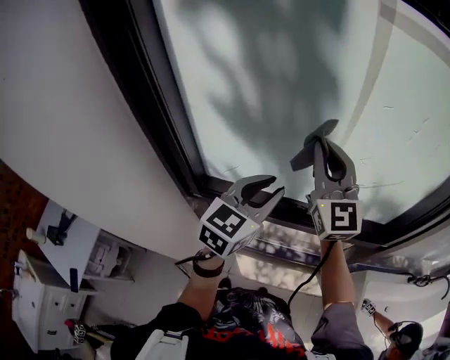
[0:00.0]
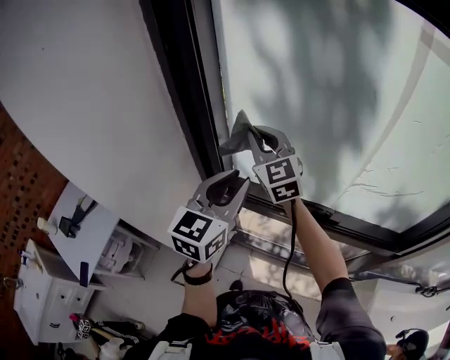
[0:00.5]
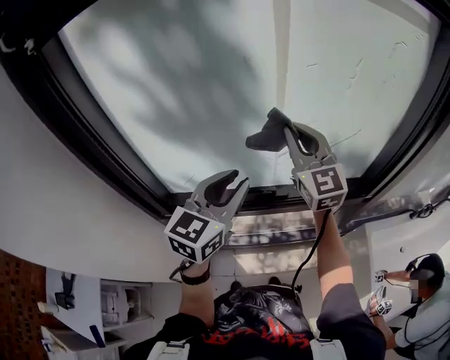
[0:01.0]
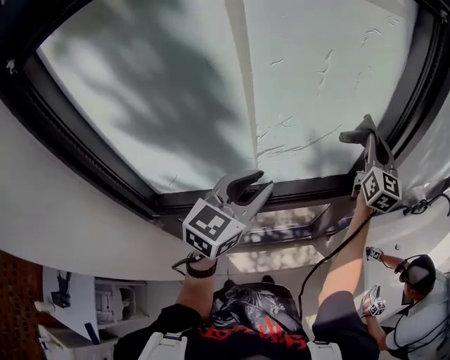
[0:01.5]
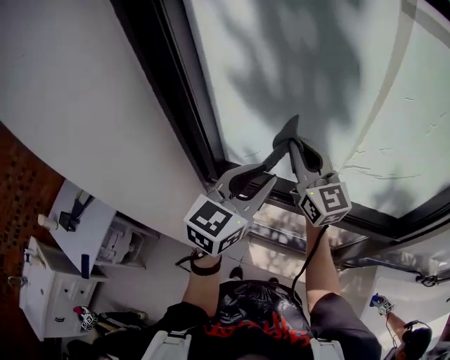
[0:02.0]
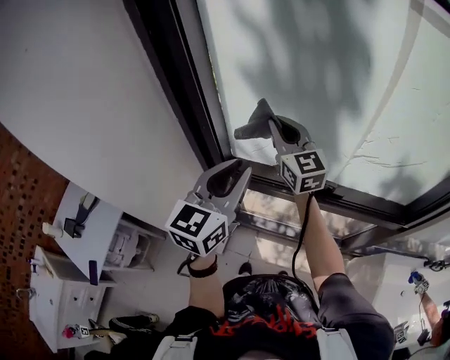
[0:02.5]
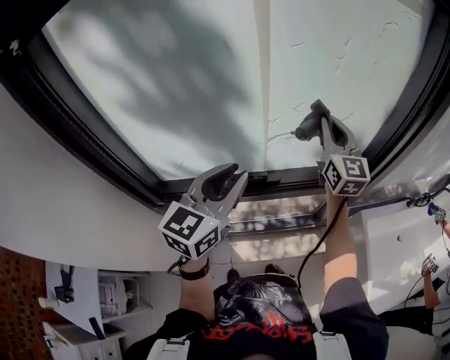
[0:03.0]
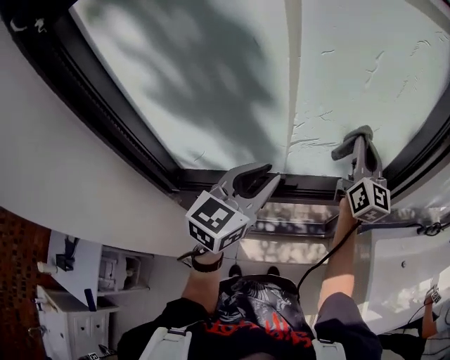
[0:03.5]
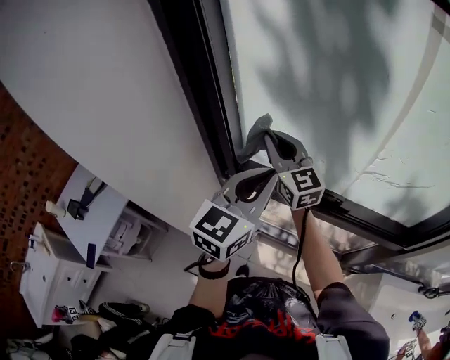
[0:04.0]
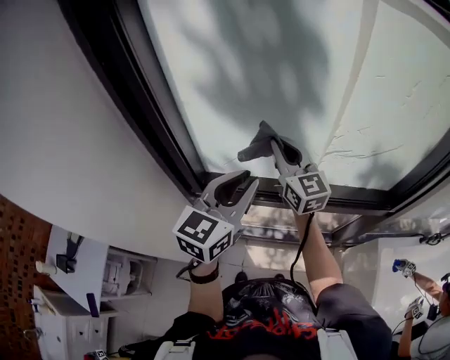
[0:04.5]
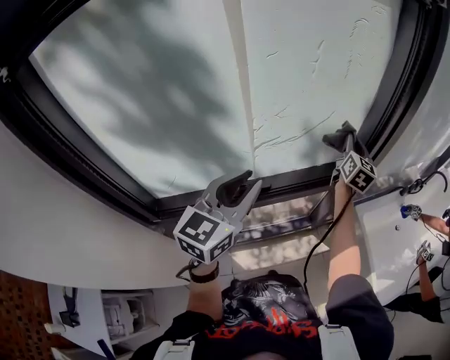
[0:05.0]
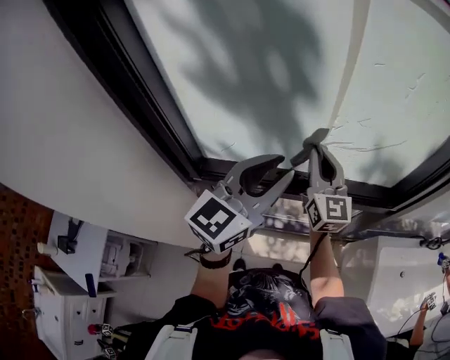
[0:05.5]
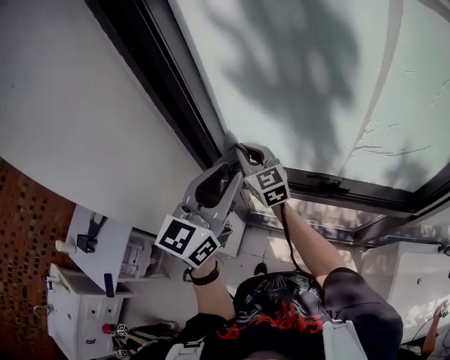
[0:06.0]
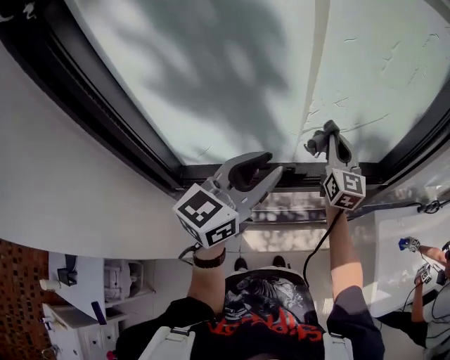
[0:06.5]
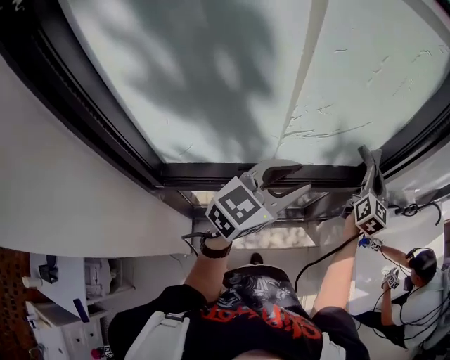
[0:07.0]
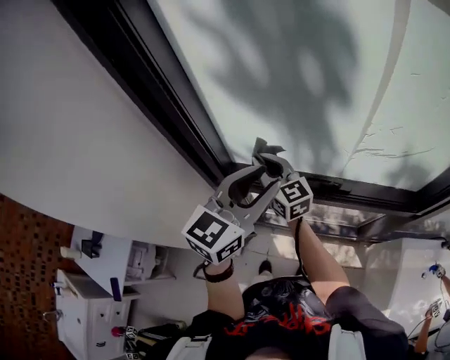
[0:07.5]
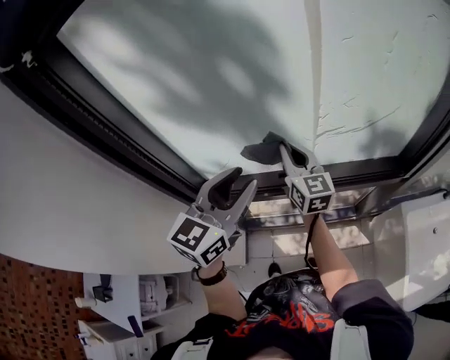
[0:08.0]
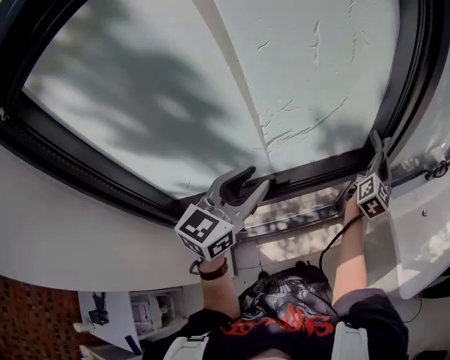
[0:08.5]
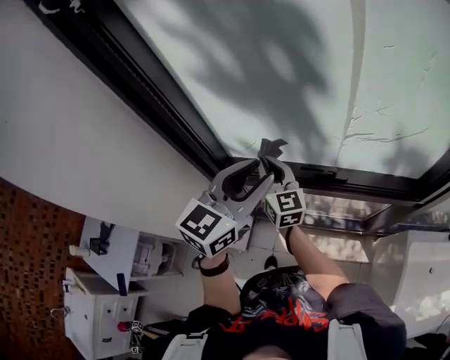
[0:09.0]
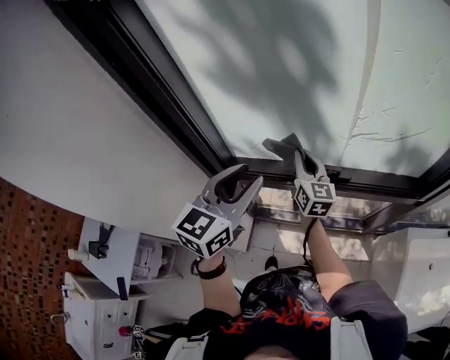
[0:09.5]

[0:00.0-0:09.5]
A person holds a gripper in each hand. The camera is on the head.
0:00.0 to 0:02.0: The right gripper rotates approximately 20 degrees.
0:02.0 to 0:04.0: The left gripper closes.
0:04.0 to 0:05.5: The right gripper turns by approximately 30 degrees, while the left gripper turns by roughly 20 degrees, and opens its fingers.
0:05.5 to 0:07.5: The right gripper changes place by approximately 25 cm, and turns by approximately 30 degrees.
0:07.5 to 0:09.5: The right gripper changes its angle by some 30 degrees.

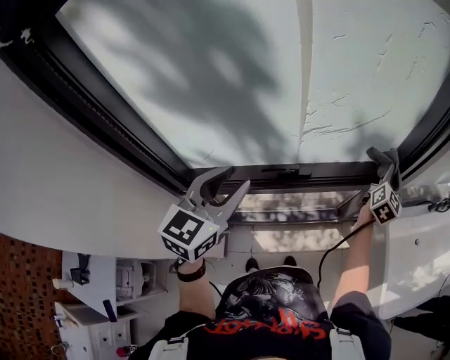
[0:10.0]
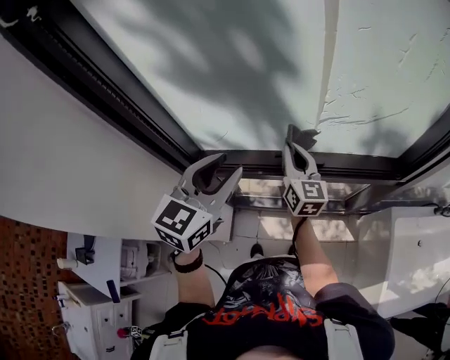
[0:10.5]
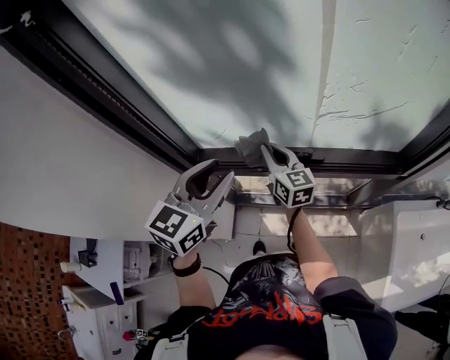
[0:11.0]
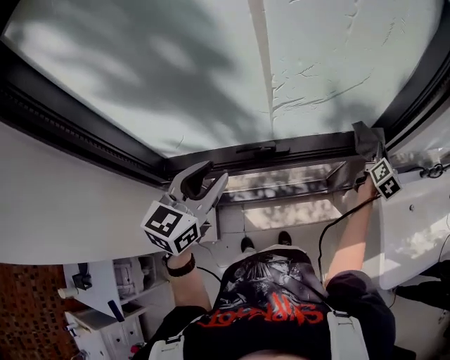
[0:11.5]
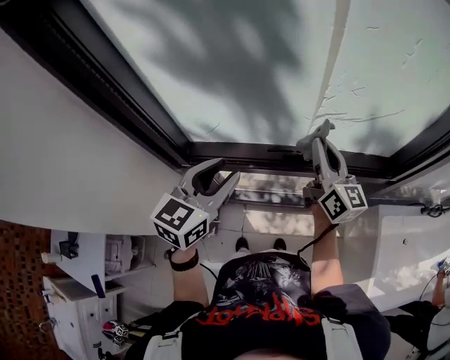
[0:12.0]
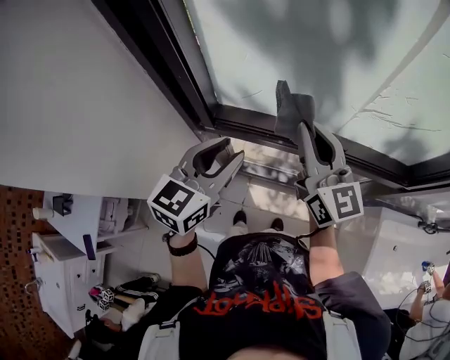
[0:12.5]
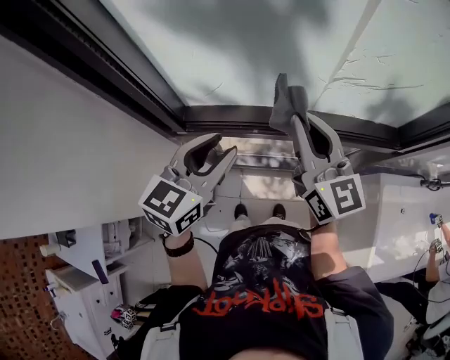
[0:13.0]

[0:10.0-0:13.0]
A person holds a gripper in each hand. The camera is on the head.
0:10.0 to 0:11.5: The right gripper travels downward by about 5 cm.
0:11.5 to 0:13.0: The left gripper moves roughly 10 cm. Meanwhile the right gripper moves approximately 50 cm, and swivels some 60 degrees.

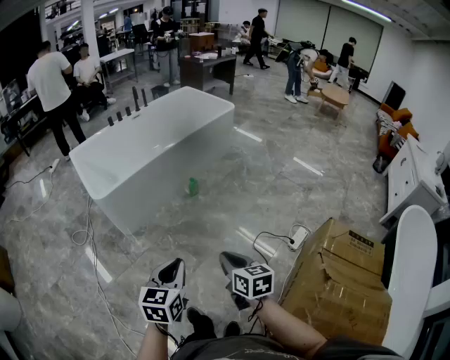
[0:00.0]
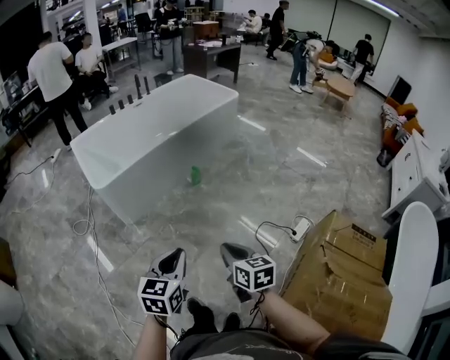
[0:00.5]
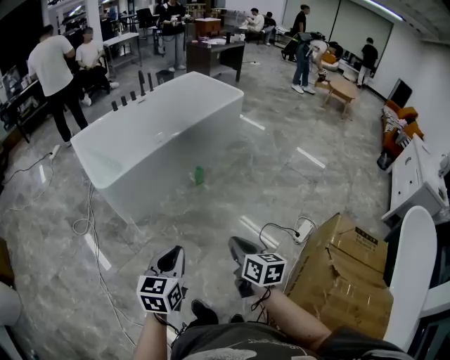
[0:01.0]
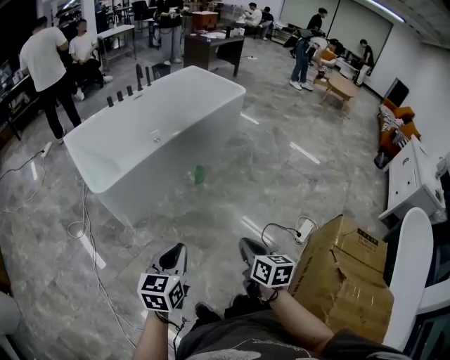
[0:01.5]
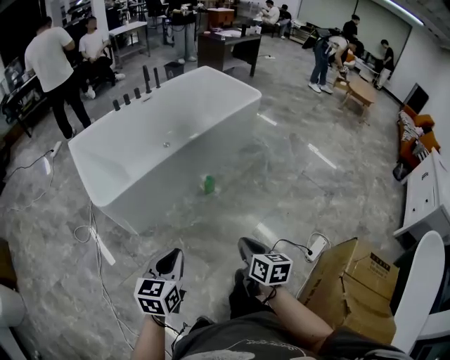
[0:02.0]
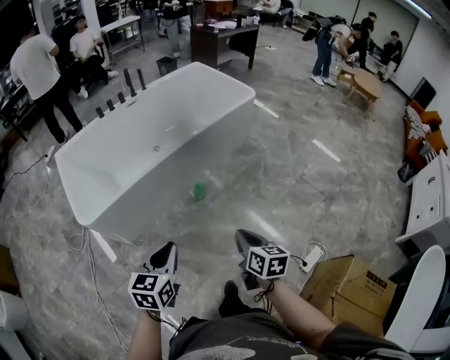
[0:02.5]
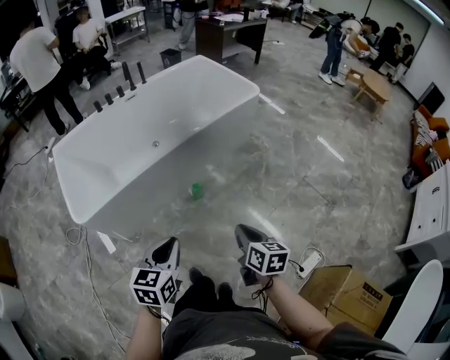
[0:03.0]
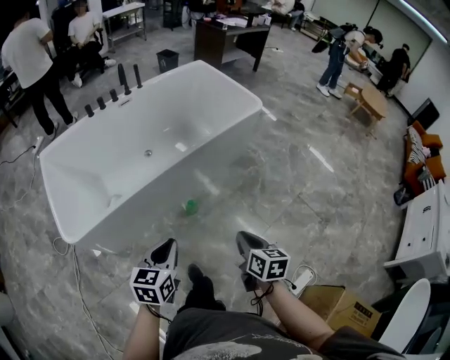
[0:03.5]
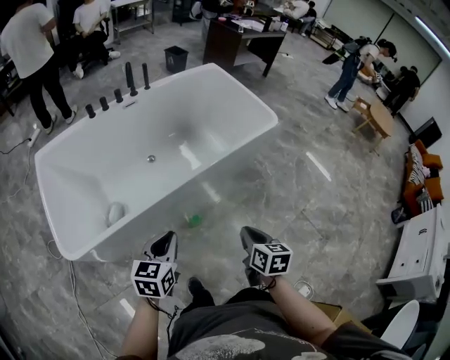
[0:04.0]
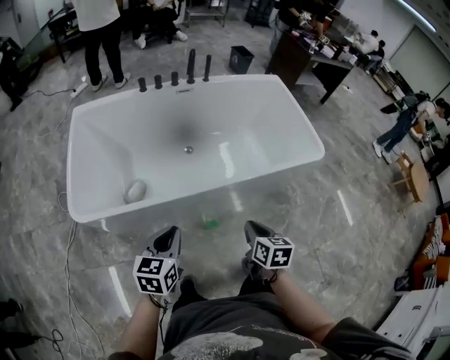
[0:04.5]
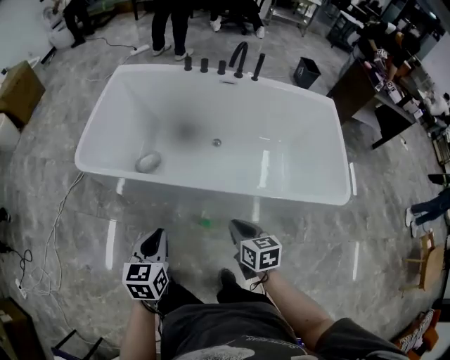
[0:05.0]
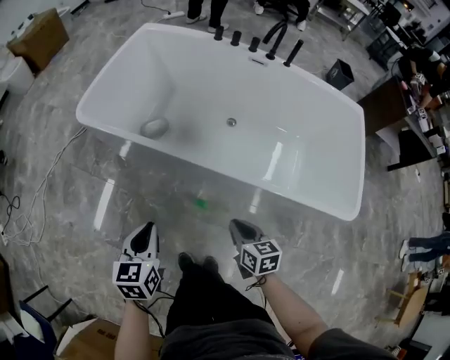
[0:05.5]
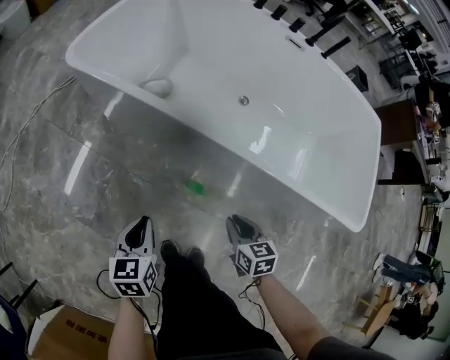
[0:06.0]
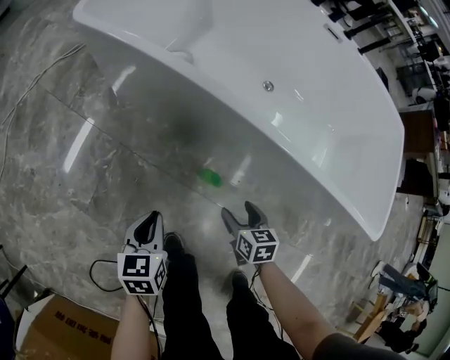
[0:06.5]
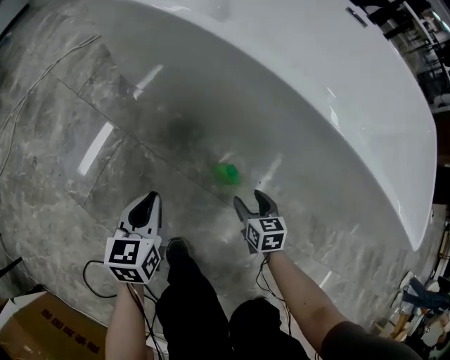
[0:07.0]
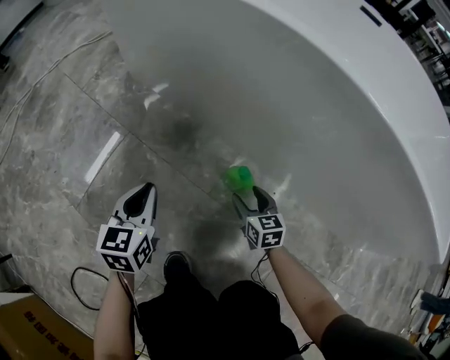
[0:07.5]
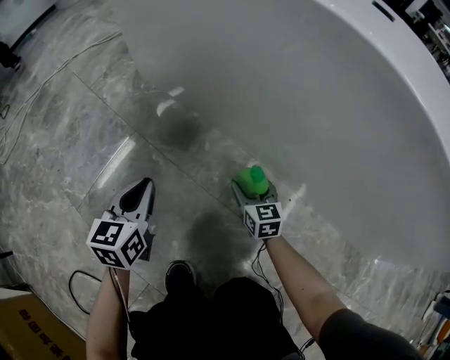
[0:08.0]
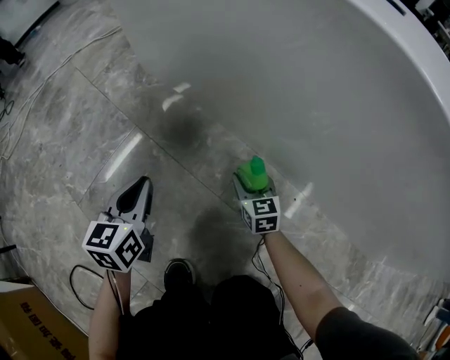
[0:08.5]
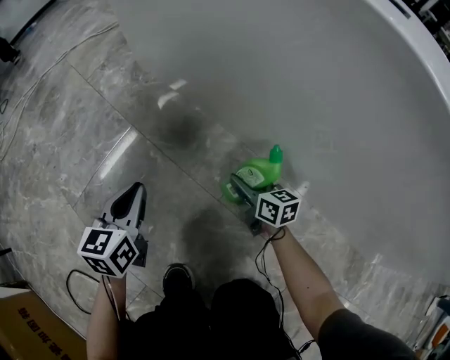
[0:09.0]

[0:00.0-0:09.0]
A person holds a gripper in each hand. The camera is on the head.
0:00.0 to 0:02.0: The two grippers go roughly 25 cm forward.
0:02.0 to 0:04.5: Both grippers are carried forward, approximately 50 cm. The left gripper changes its angle by some 30 degrees, while the right gripper swivels approximately 30 degrees.
0:04.5 to 0:07.0: Both grippers travel together downward, about 50 cm. The right gripper rotates some 60 degrees, and opens its fingers; the left gripper swivels some 60 degrees.
0:07.0 to 0:09.0: The right gripper shifts about 20 cm downward, forward and to the left, rotates roughly 30 degrees, and closes its fingers. Meanwhile the left gripper is displaced downward by approximately 15 cm.

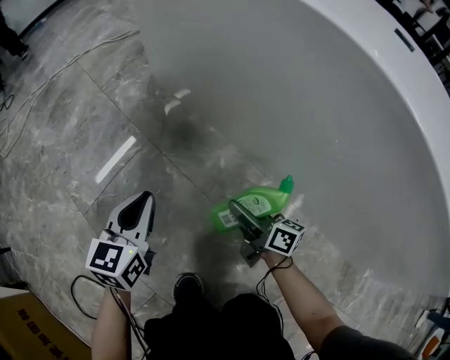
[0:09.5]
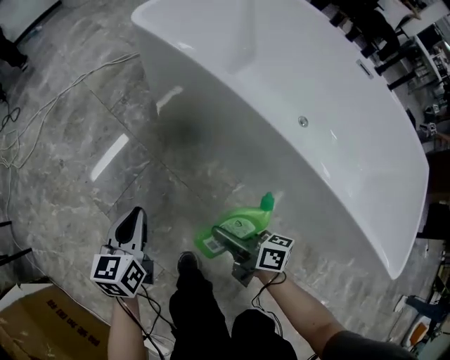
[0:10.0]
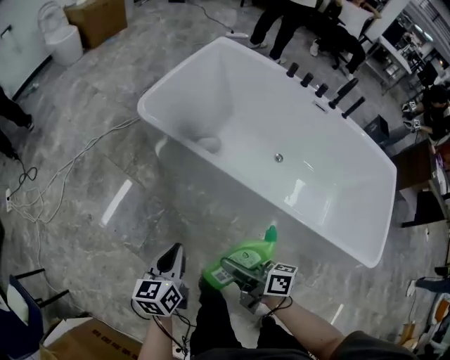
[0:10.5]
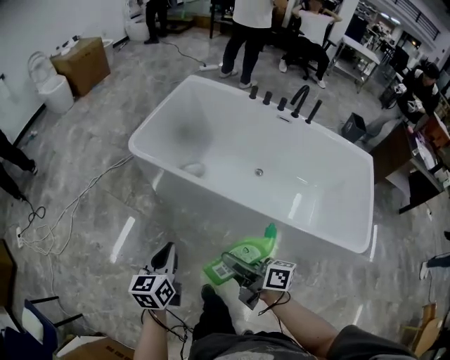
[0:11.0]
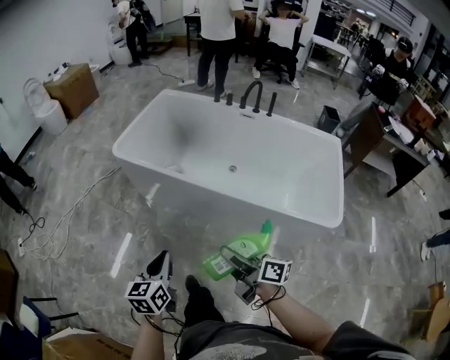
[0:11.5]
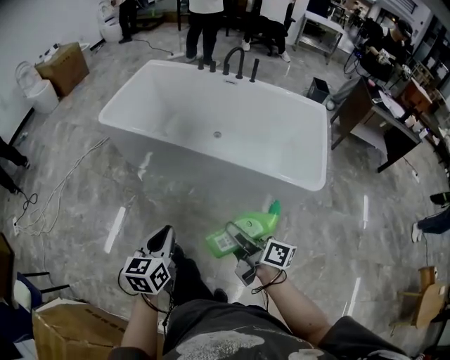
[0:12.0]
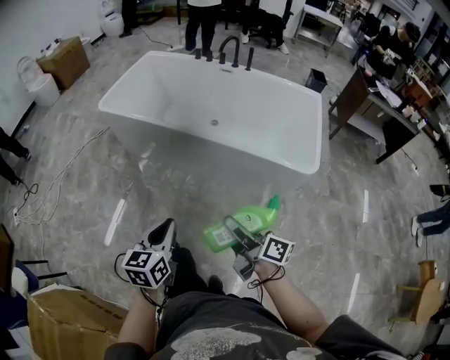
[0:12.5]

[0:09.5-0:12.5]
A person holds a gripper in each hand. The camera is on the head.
0:09.5 to 0:11.0: Both grippers travel together upward, approximately 60 cm.
0:11.0 to 0:12.5: The pair of grippers is taken backward and to the right, roughly 40 cm.

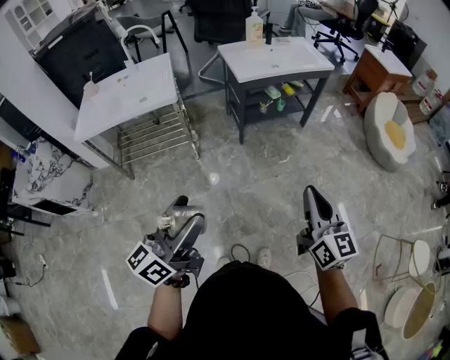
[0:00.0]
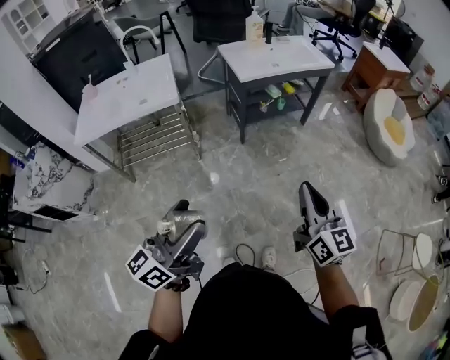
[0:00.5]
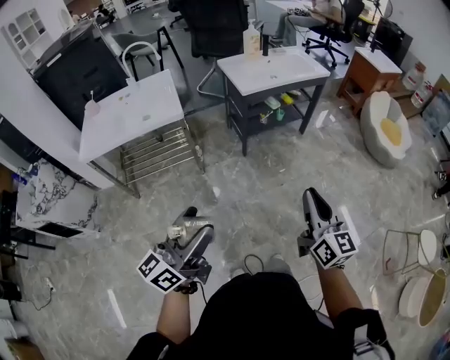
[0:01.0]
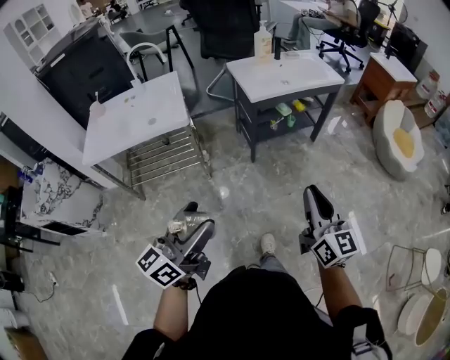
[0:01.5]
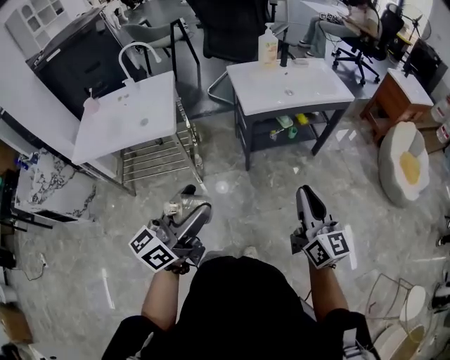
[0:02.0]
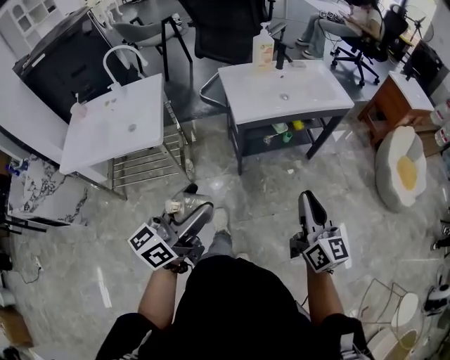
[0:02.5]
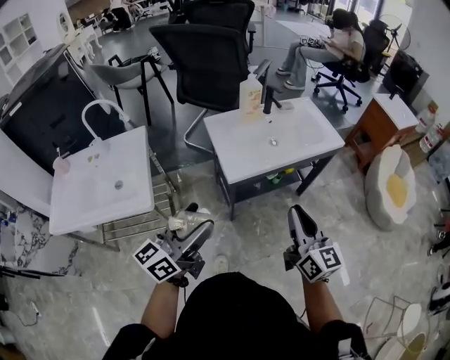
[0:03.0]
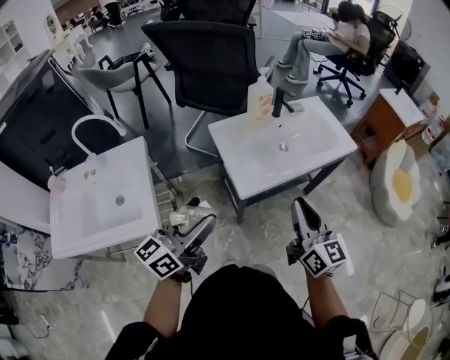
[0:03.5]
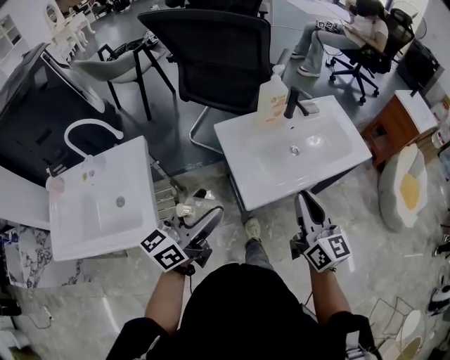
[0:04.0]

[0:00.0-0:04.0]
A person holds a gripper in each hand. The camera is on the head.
0:00.0 to 0:02.0: Both grippers travel together forward, approximately 25 cm.
0:02.0 to 0:04.0: Both grippers are carried forward, some 40 cm.
